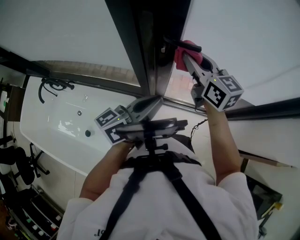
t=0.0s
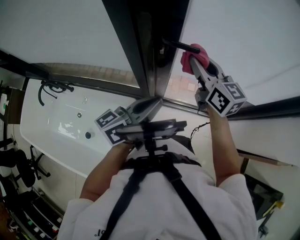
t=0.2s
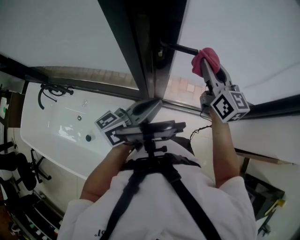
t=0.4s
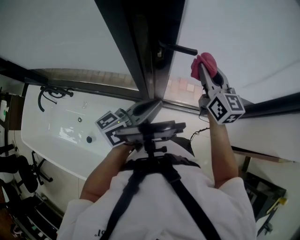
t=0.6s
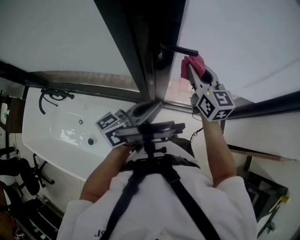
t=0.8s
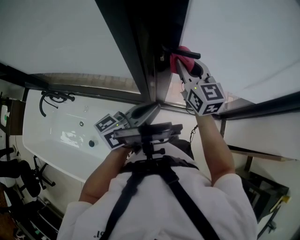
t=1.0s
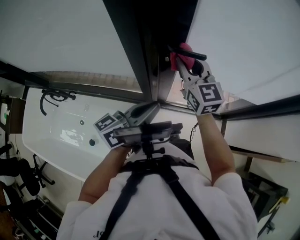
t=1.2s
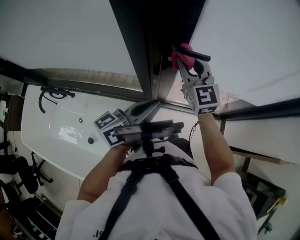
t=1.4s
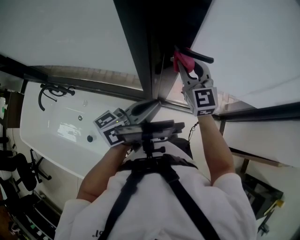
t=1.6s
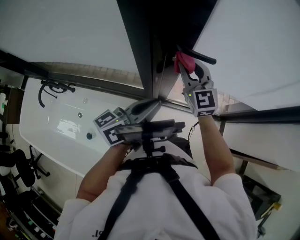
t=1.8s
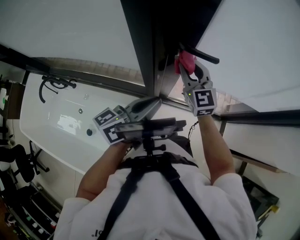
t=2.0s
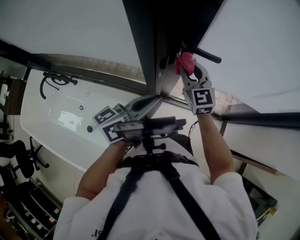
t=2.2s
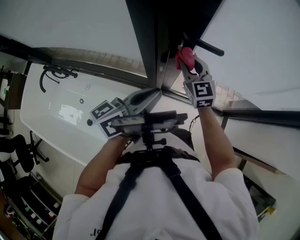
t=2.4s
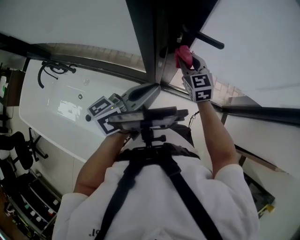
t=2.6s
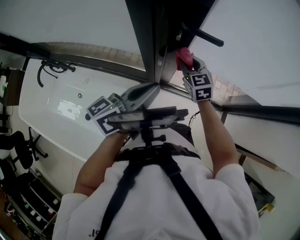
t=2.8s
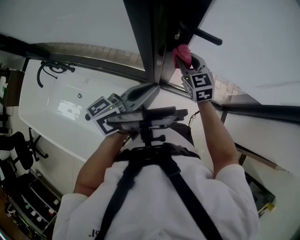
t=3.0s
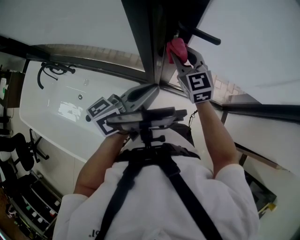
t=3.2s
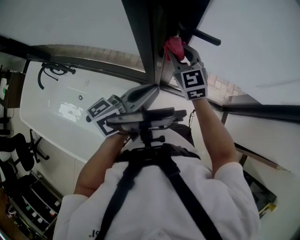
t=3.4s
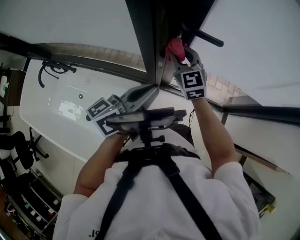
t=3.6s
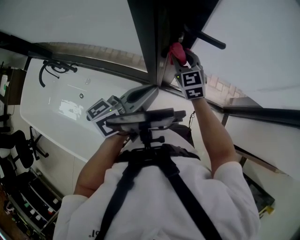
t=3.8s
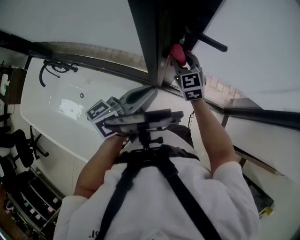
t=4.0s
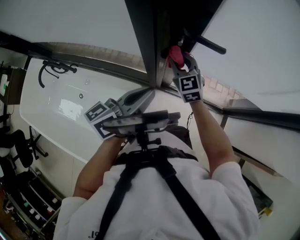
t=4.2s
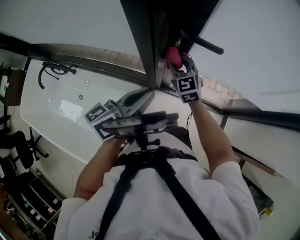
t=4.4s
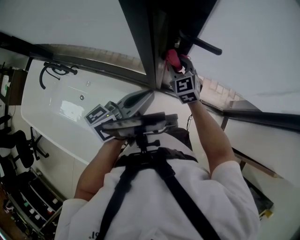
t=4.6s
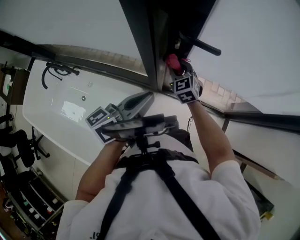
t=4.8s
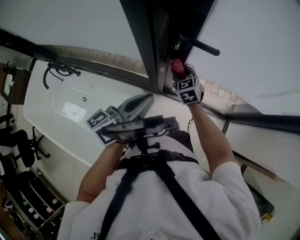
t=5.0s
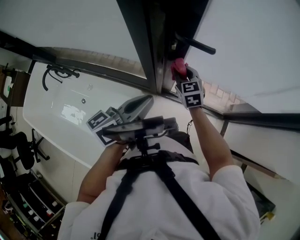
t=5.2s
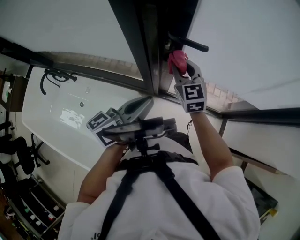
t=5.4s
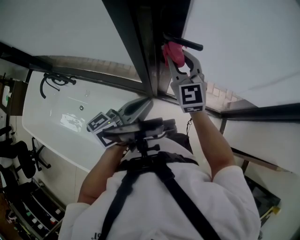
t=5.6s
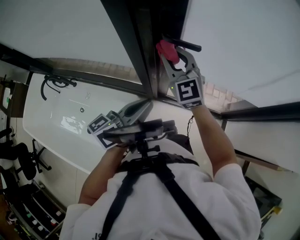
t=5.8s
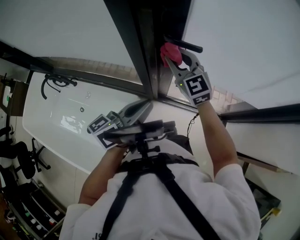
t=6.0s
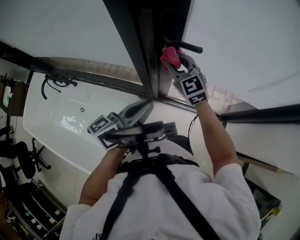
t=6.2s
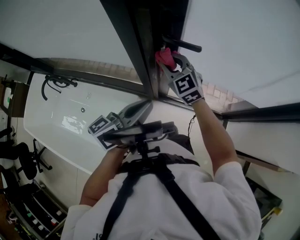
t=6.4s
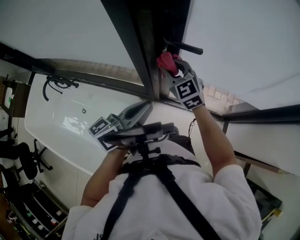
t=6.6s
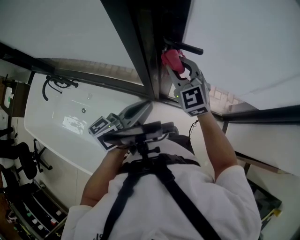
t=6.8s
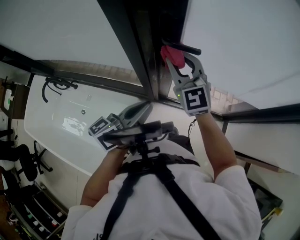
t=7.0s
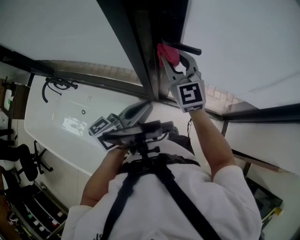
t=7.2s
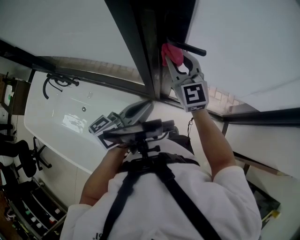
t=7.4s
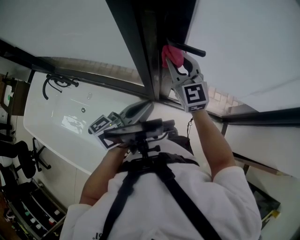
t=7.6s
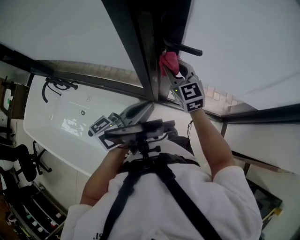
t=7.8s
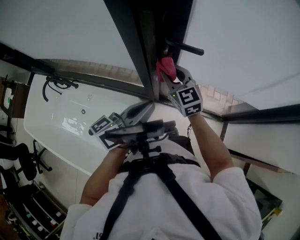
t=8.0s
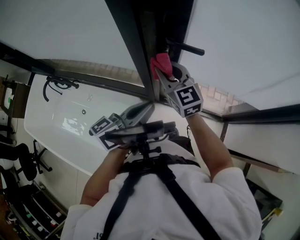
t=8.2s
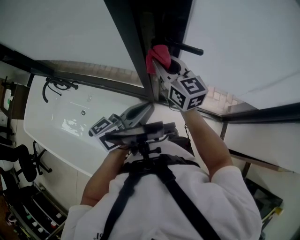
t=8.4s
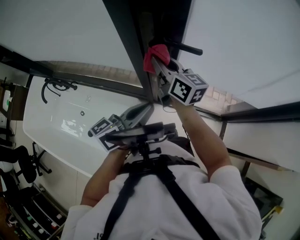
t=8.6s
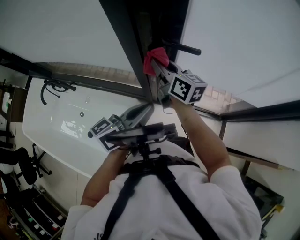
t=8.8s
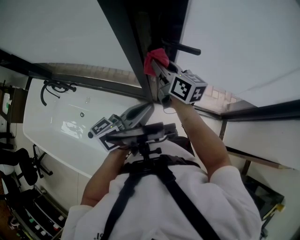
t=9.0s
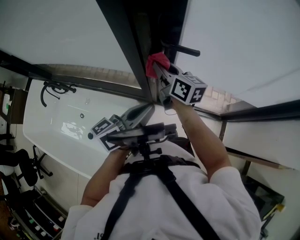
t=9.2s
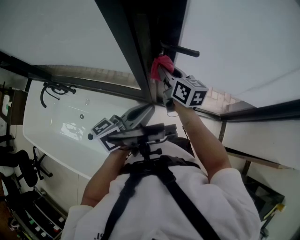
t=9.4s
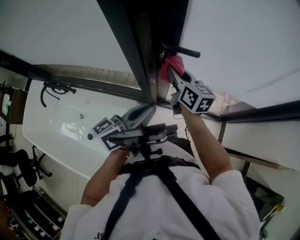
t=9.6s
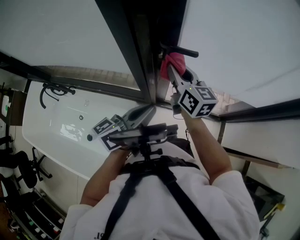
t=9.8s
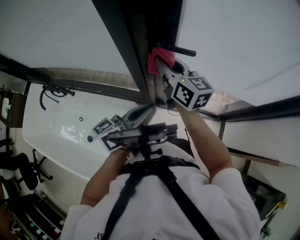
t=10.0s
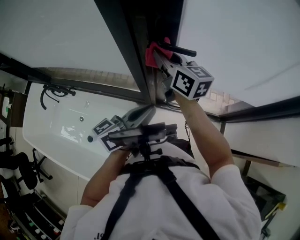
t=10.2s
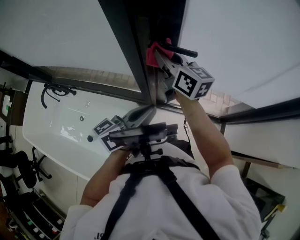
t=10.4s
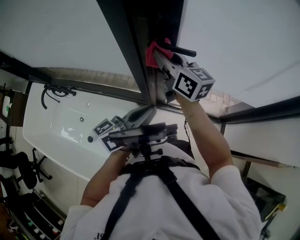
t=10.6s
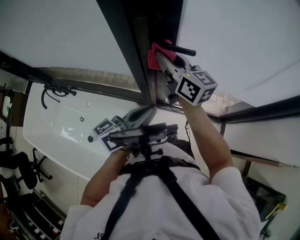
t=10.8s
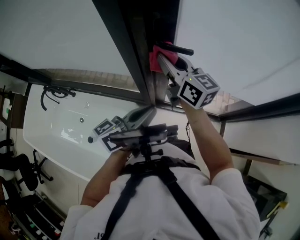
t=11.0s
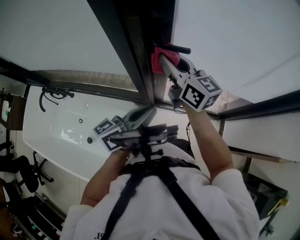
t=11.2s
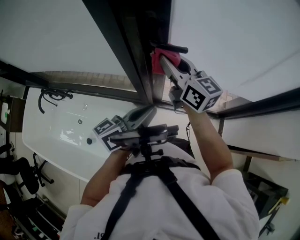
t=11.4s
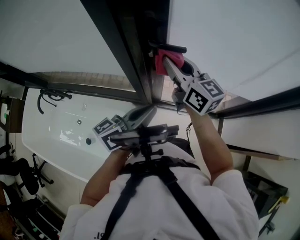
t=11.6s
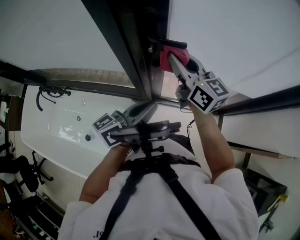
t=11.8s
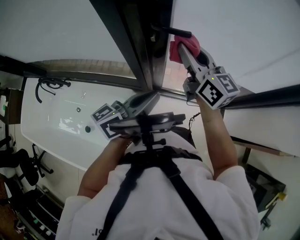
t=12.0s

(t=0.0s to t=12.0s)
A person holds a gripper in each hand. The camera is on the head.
t=0.0s - t=1.6s: The right gripper moves about 10 cm to the right and comes back, and swivels about 30 degrees.
t=1.6s - t=3.0s: The right gripper heads downward, covering about 15 cm, and swivels roughly 20 degrees.
t=4.4s - t=6.0s: The right gripper heads upward, covering roughly 10 cm.
t=6.0s - t=7.6s: The right gripper moves roughly 5 cm downward and comes back.
t=7.6s - t=9.0s: The right gripper twists about 50 degrees clockwise, seen from behind.
t=9.0s - t=10.4s: The right gripper shifts approximately 5 cm upward.
t=10.4s - t=12.0s: The right gripper shifts about 10 cm to the right.

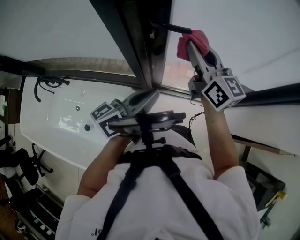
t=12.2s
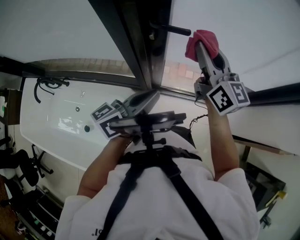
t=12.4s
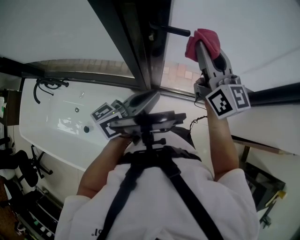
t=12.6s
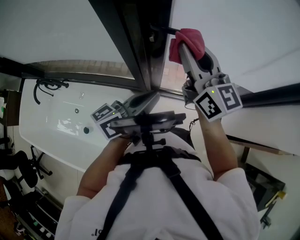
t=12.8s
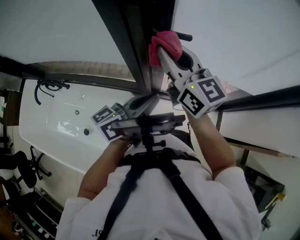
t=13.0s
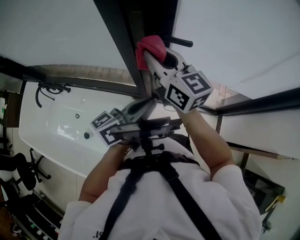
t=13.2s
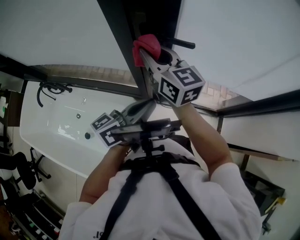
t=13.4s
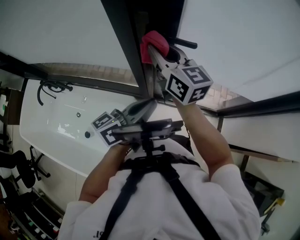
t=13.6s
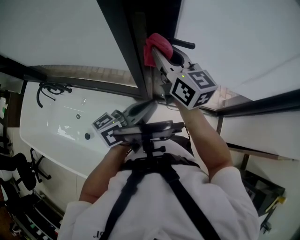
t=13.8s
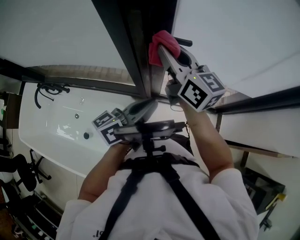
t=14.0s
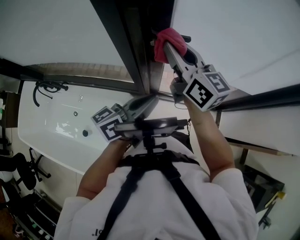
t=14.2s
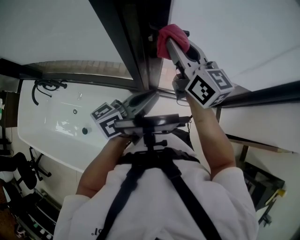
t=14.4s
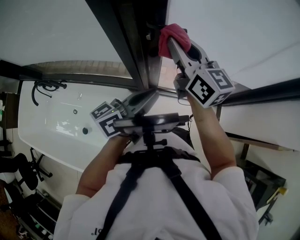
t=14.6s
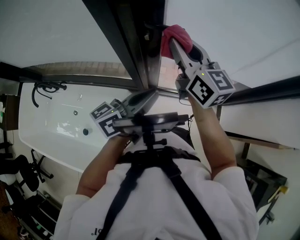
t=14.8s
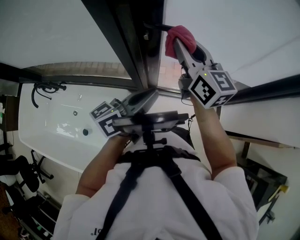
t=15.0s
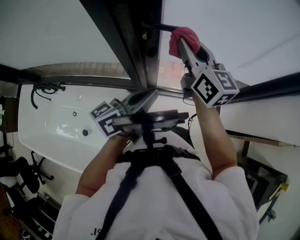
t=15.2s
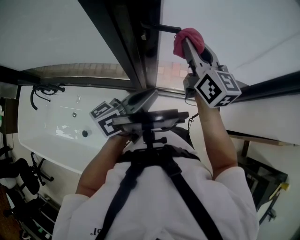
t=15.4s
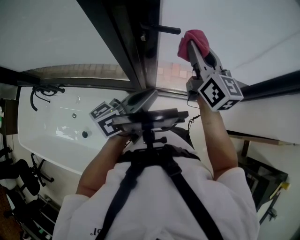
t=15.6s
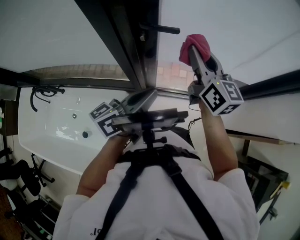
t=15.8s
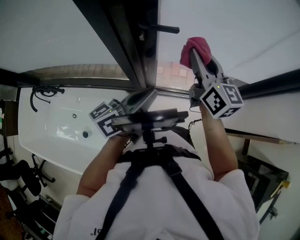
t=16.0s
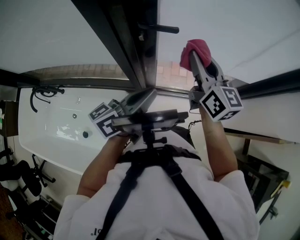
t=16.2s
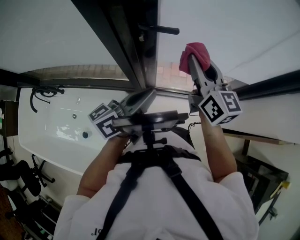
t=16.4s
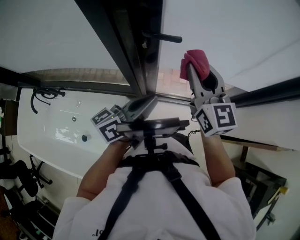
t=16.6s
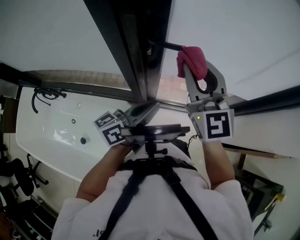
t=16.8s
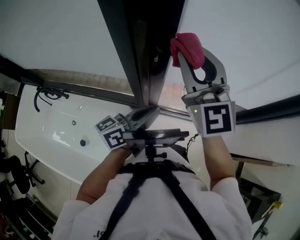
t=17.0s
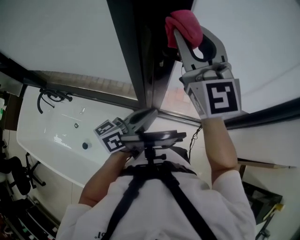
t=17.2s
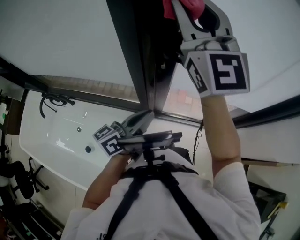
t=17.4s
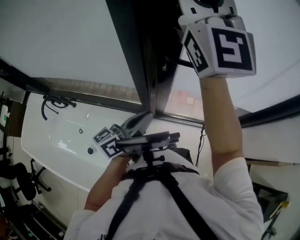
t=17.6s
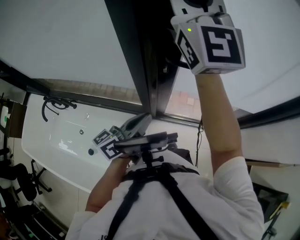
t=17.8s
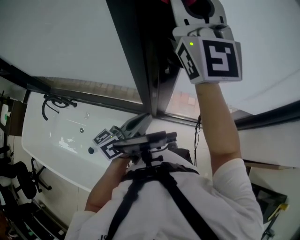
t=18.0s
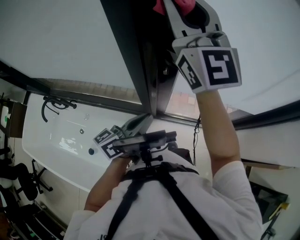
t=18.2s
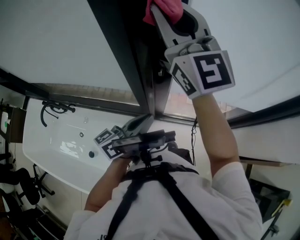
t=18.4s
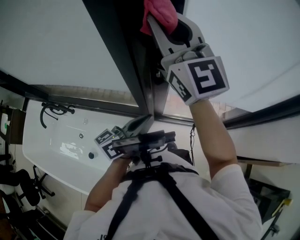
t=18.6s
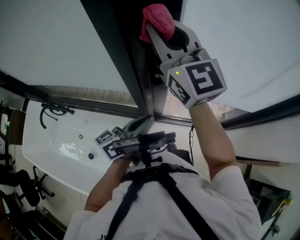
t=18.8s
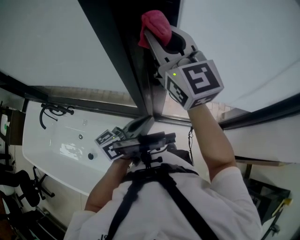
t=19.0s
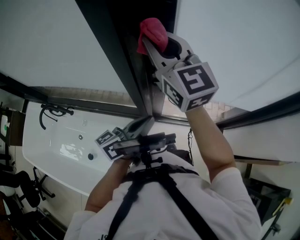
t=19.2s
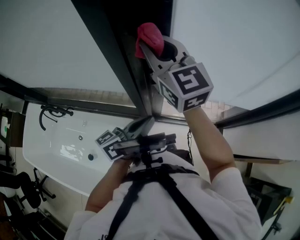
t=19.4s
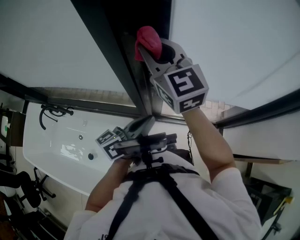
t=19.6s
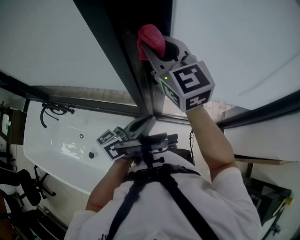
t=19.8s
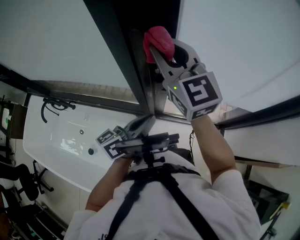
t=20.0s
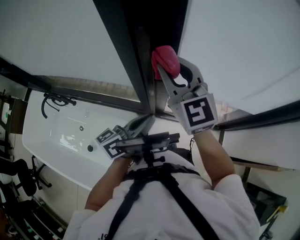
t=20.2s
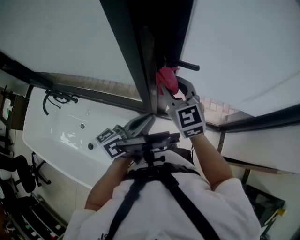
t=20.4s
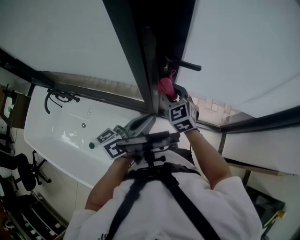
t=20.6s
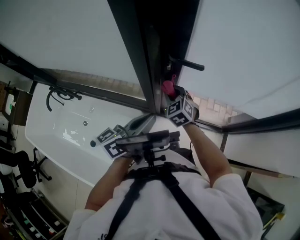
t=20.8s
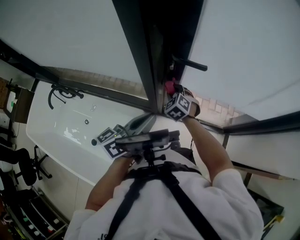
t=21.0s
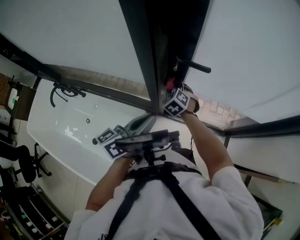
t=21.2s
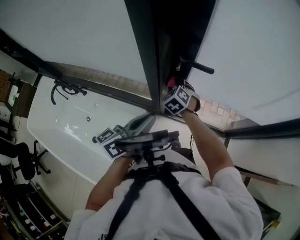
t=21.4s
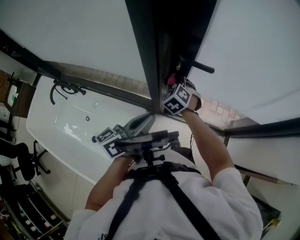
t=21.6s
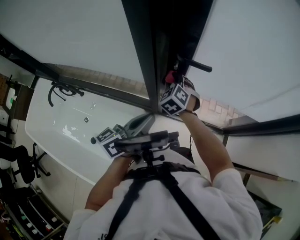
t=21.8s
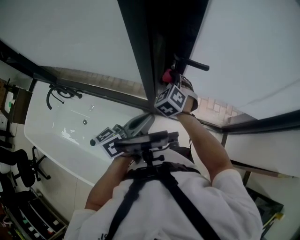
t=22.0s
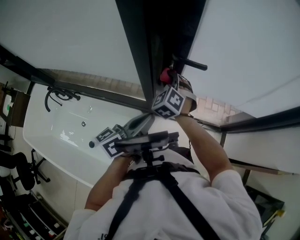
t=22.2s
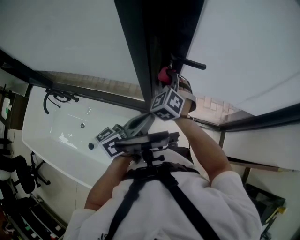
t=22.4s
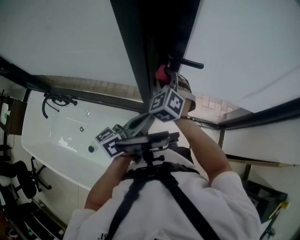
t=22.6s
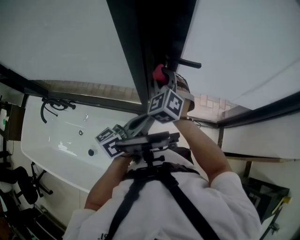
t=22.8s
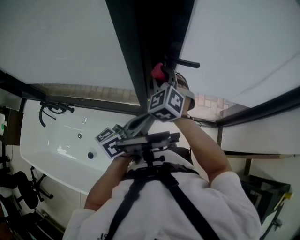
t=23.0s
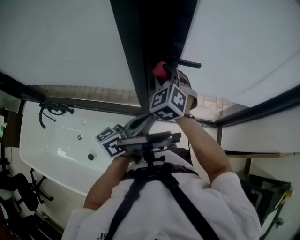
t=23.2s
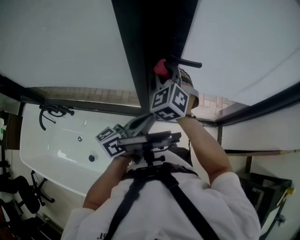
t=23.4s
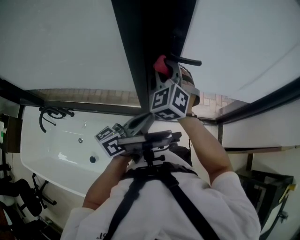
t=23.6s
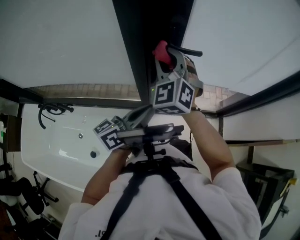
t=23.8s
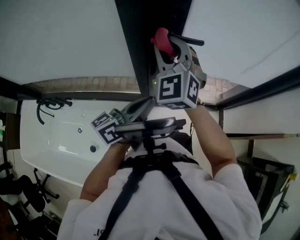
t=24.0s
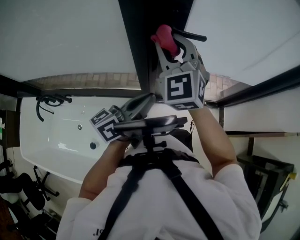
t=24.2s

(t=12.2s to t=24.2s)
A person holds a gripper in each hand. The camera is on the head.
t=12.2s - t=13.8s: The right gripper is displaced to the left by about 10 cm.
t=13.8s - t=15.2s: The right gripper moves to the right, approximately 10 cm.
t=15.2s - t=16.6s: The right gripper ends up about 5 cm from where it was.
t=16.6s - t=18.2s: The left gripper is displaced to the left by roughly 5 cm; the right gripper is displaced upward and to the left by some 30 cm, and changes its angle by roughly 40 degrees.
t=18.2s - t=19.8s: The right gripper shifts roughly 15 cm downward, and rotates roughly 30 degrees.
t=19.8s - t=21.2s: The left gripper moves some 5 cm. Meanwhile the right gripper shifts approximately 35 cm downward, and tips its fingers downward by some 50 degrees.
t=21.2s - t=22.6s: The right gripper travels upward by approximately 15 cm.
t=22.6s - t=24.2s: The right gripper shifts roughly 15 cm upward, and changes its angle by roughly 20 degrees.
